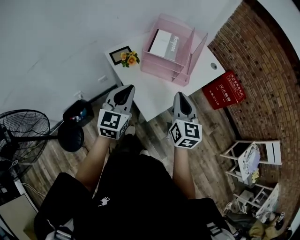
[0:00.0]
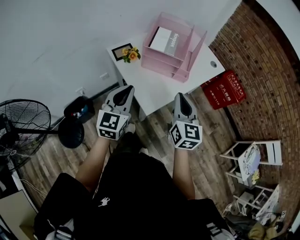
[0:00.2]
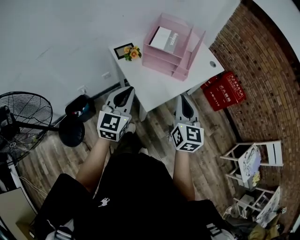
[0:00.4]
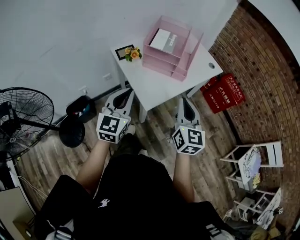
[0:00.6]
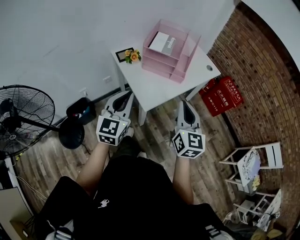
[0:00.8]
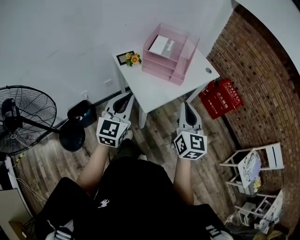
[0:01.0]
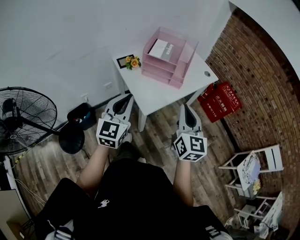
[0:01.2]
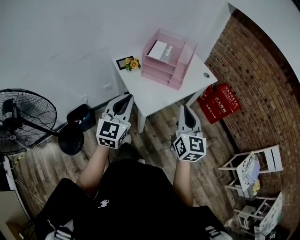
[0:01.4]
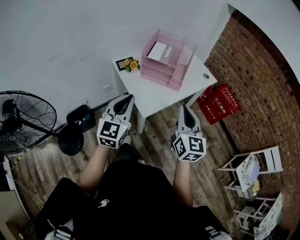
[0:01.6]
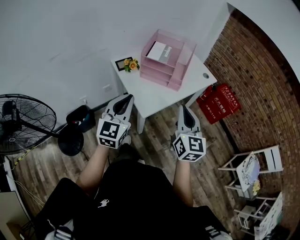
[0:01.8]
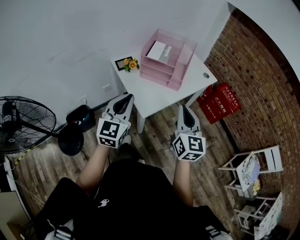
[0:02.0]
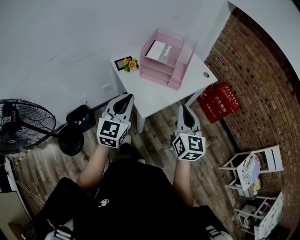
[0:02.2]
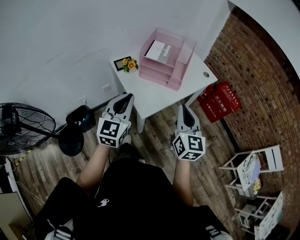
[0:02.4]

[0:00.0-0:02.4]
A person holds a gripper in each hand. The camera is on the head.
0:00.0 to 0:01.2: The left gripper is displaced backward by about 15 cm, while the right gripper goes some 15 cm backward and to the right.
0:01.2 to 0:02.4: There are only small adjustments of the grippers.

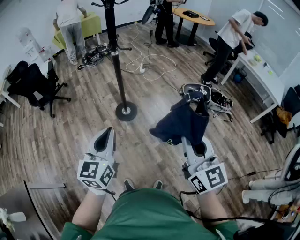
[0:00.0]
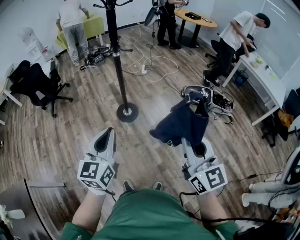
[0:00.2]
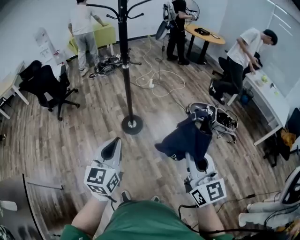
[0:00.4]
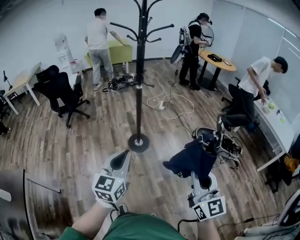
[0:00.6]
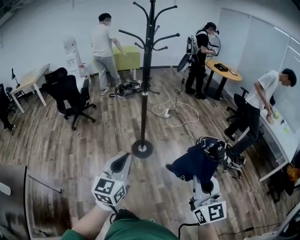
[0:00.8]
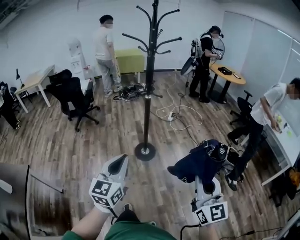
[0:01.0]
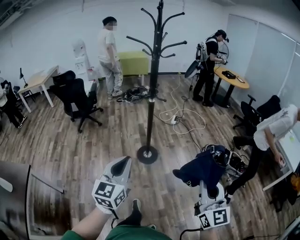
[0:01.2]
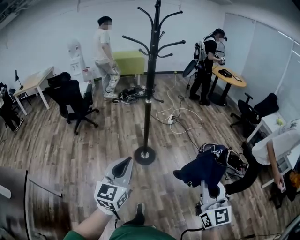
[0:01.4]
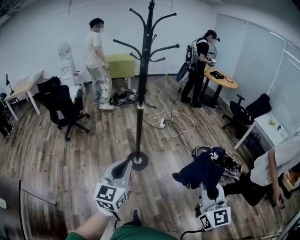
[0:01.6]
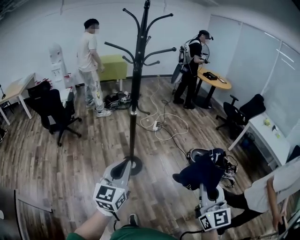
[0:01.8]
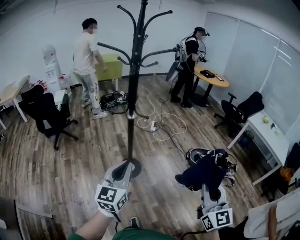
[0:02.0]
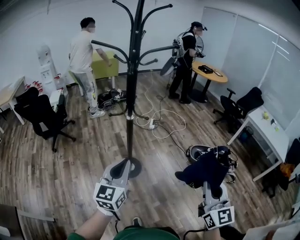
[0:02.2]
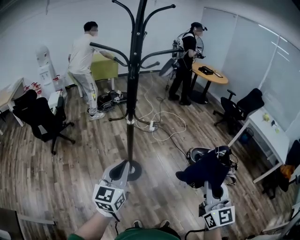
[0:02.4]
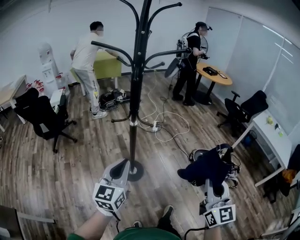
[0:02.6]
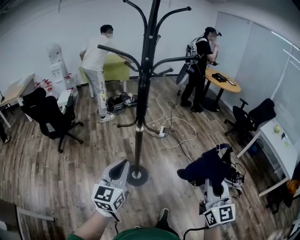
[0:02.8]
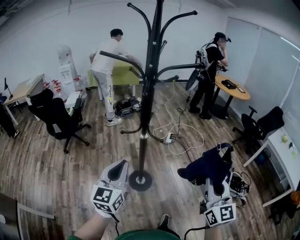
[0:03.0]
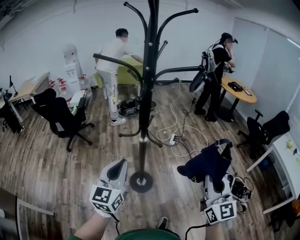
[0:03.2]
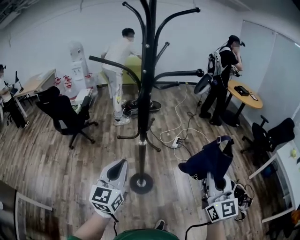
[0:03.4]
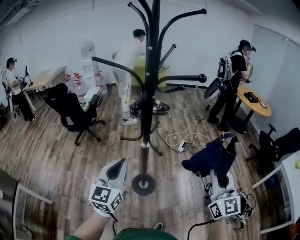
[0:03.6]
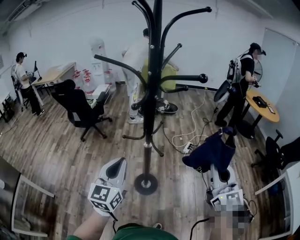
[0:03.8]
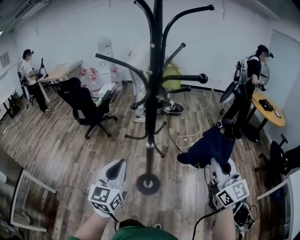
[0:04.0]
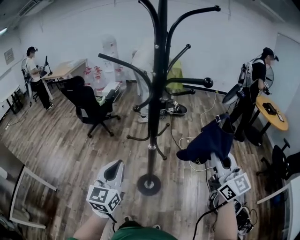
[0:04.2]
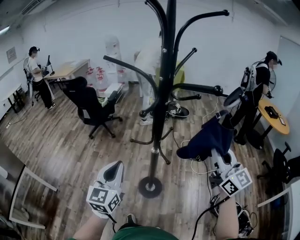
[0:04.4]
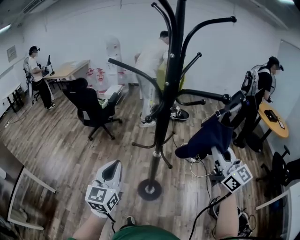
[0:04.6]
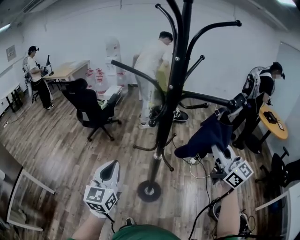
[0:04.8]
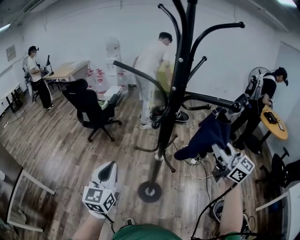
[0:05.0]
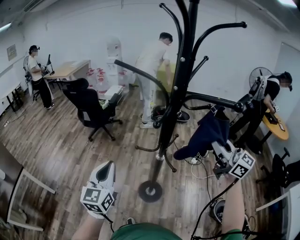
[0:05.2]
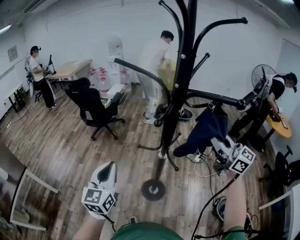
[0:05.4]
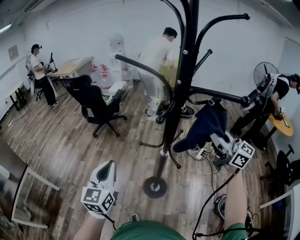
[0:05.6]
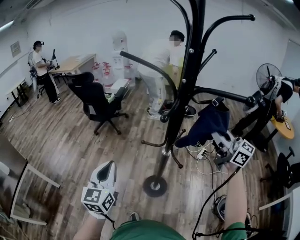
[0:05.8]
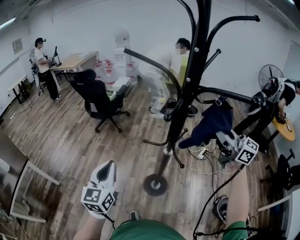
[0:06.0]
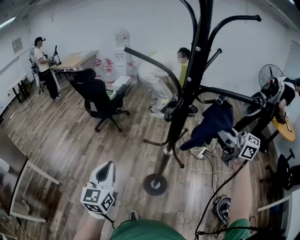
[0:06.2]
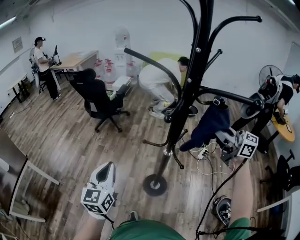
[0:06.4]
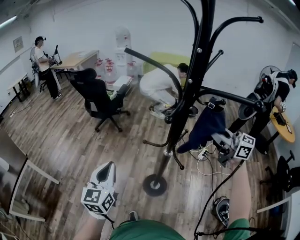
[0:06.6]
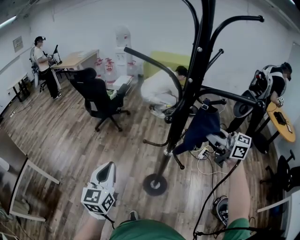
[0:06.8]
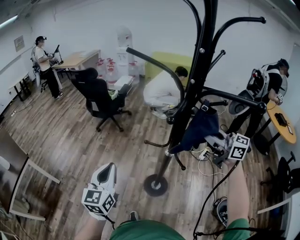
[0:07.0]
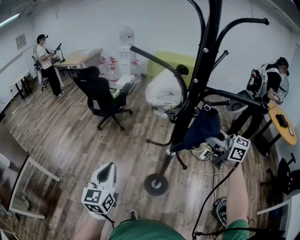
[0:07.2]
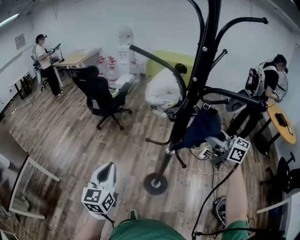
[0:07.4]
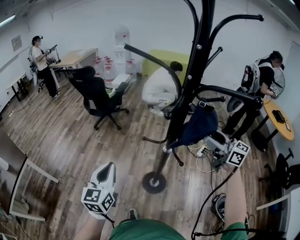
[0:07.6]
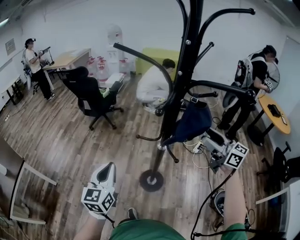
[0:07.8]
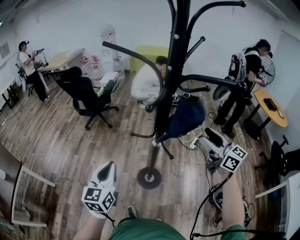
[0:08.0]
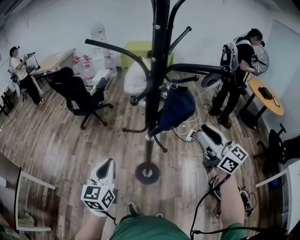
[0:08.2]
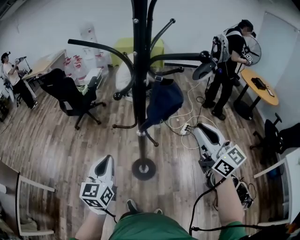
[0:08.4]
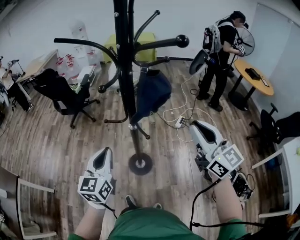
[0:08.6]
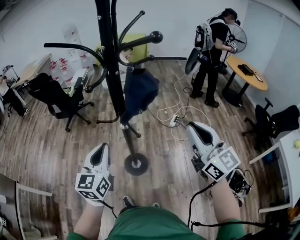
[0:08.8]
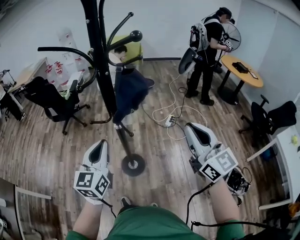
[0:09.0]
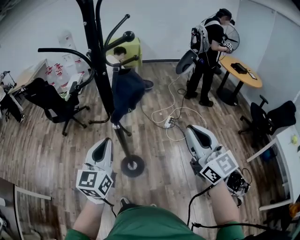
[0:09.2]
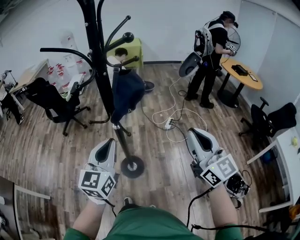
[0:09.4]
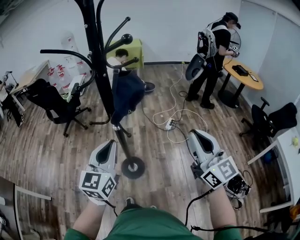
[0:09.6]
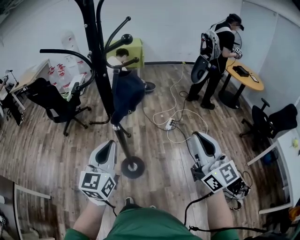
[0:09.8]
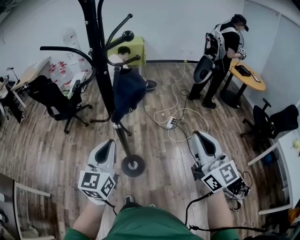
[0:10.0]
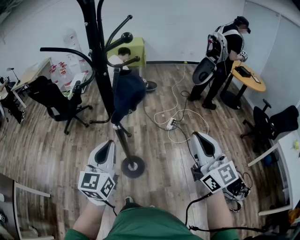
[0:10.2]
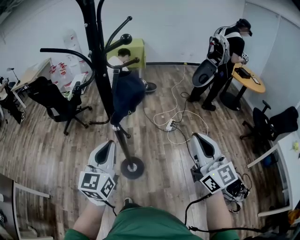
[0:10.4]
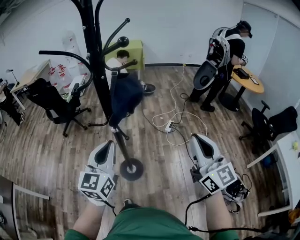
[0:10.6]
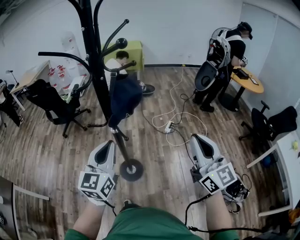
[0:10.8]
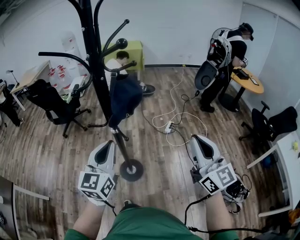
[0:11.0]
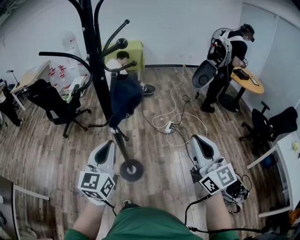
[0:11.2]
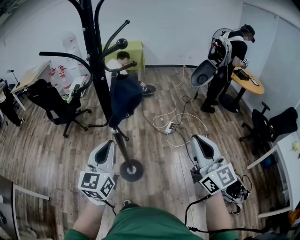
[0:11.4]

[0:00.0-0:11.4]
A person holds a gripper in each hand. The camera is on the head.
0:00.0 to 0:01.4: The right gripper heads to the right, covering approximately 5 cm; the left gripper changes place by about 5 cm.
0:01.4 to 0:02.8: The grippers both shift forward by some 30 cm.
0:02.8 to 0:04.2: The right gripper ends up roughly 35 cm from where it was, and changes its angle by about 40 degrees, while the left gripper moves roughly 10 cm, and turns by roughly 30 degrees.
0:04.2 to 0:05.6: The left gripper is displaced to the left and forward by approximately 10 cm, while the right gripper travels forward by some 15 cm, and rotates approximately 30 degrees.
0:05.6 to 0:07.2: The right gripper shifts some 5 cm forward, and opens.
0:07.2 to 0:08.6: The right gripper is displaced backward by about 20 cm, rotates about 40 degrees, and closes. Meanwhile the left gripper travels to the right by about 15 cm.
0:08.6 to 0:10.0: The left gripper travels to the right by roughly 10 cm. The right gripper heads backward and to the right, covering approximately 15 cm.
0:10.0 to 0:11.4: The grippers stay close to where they were, moving slightly.

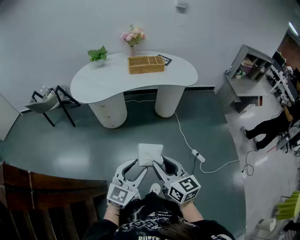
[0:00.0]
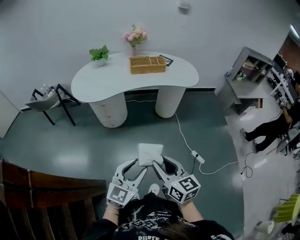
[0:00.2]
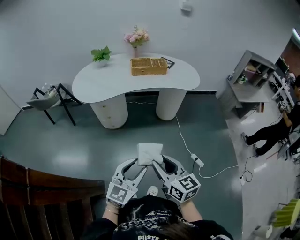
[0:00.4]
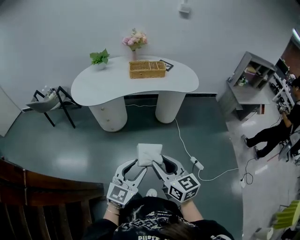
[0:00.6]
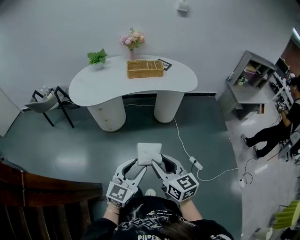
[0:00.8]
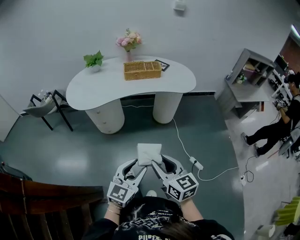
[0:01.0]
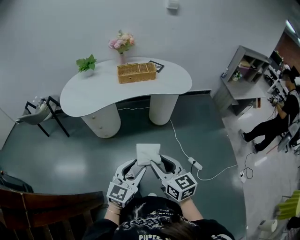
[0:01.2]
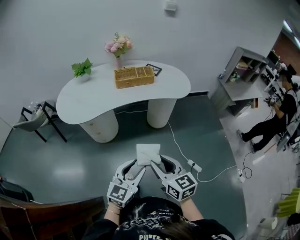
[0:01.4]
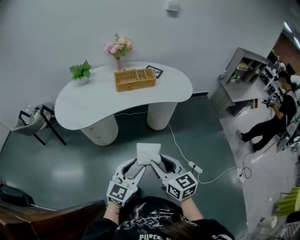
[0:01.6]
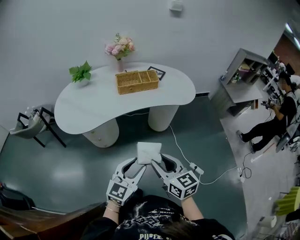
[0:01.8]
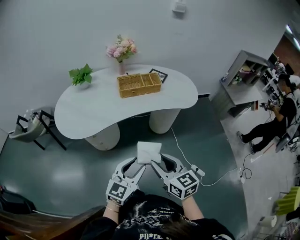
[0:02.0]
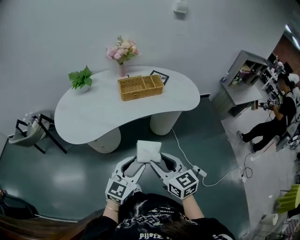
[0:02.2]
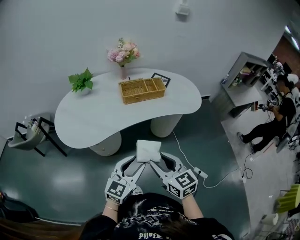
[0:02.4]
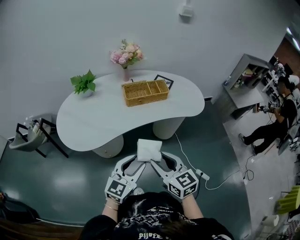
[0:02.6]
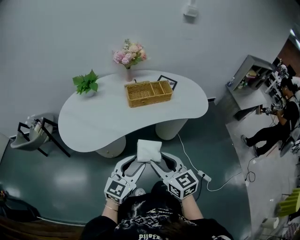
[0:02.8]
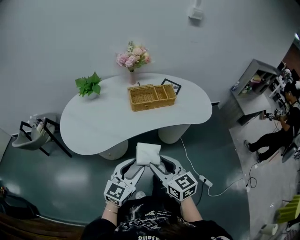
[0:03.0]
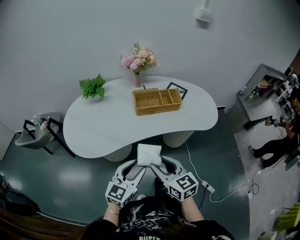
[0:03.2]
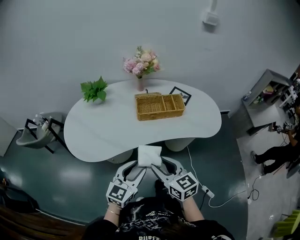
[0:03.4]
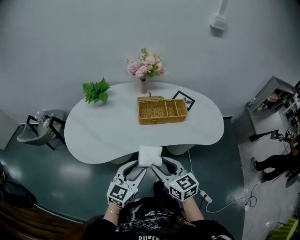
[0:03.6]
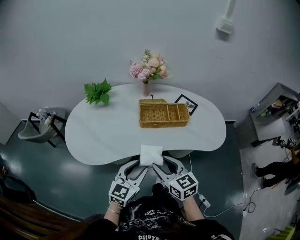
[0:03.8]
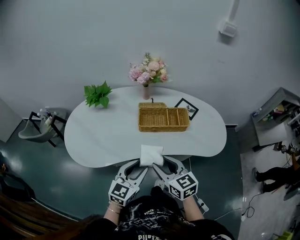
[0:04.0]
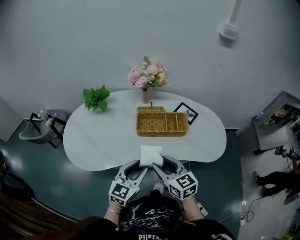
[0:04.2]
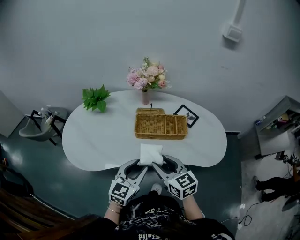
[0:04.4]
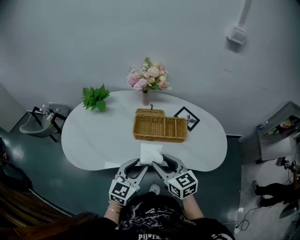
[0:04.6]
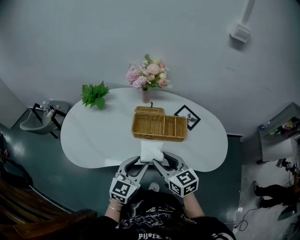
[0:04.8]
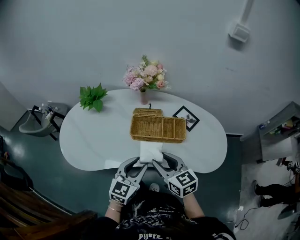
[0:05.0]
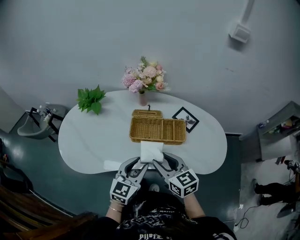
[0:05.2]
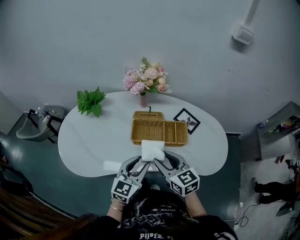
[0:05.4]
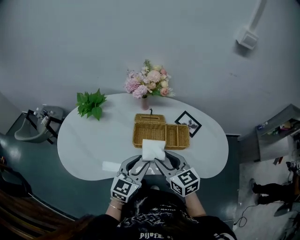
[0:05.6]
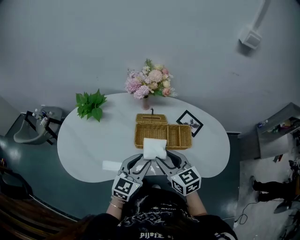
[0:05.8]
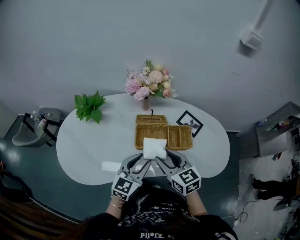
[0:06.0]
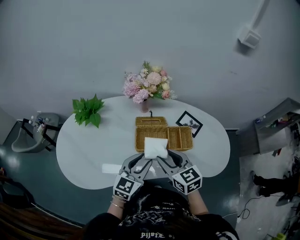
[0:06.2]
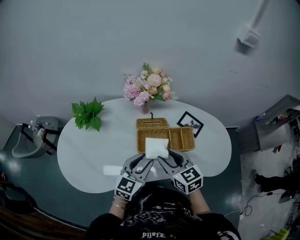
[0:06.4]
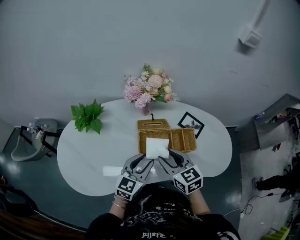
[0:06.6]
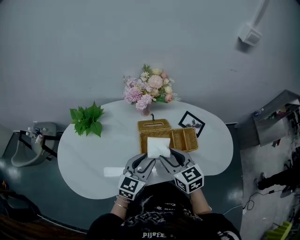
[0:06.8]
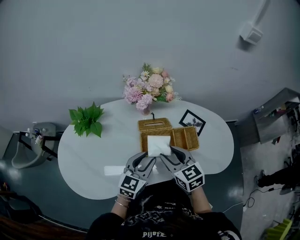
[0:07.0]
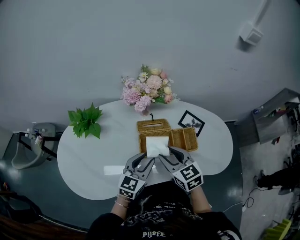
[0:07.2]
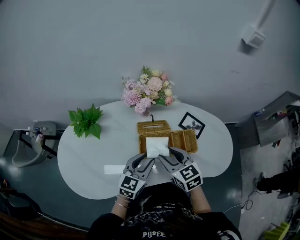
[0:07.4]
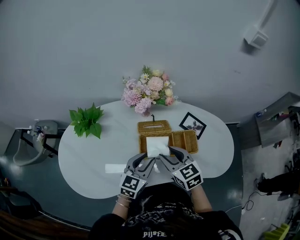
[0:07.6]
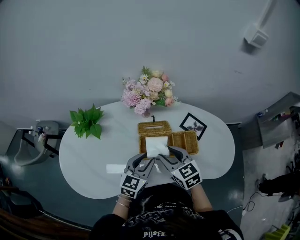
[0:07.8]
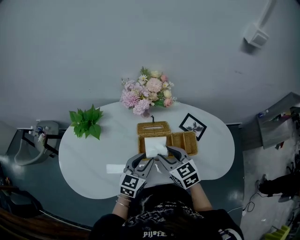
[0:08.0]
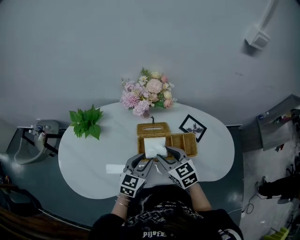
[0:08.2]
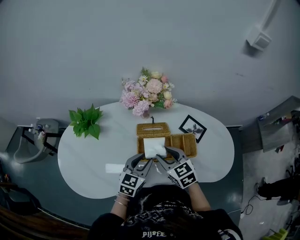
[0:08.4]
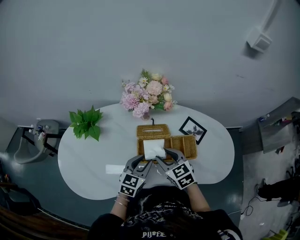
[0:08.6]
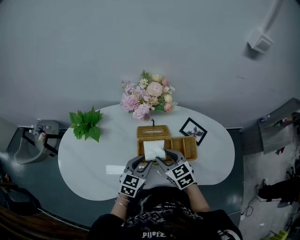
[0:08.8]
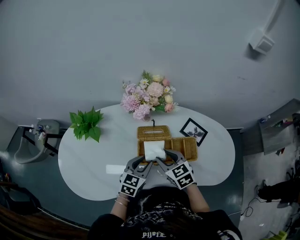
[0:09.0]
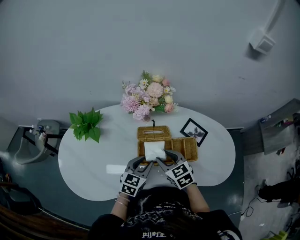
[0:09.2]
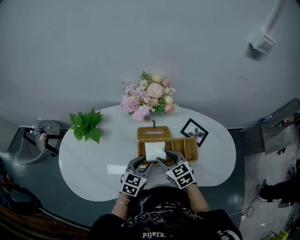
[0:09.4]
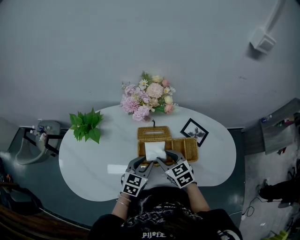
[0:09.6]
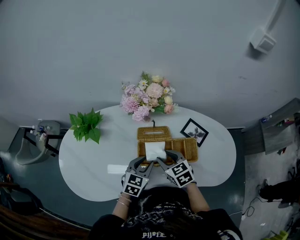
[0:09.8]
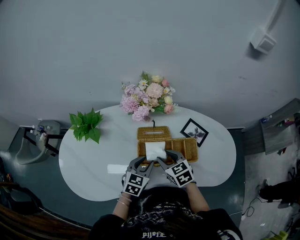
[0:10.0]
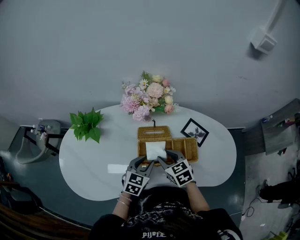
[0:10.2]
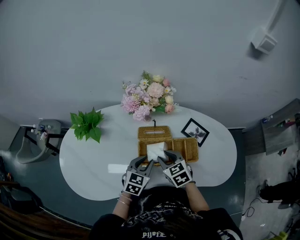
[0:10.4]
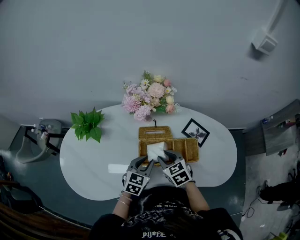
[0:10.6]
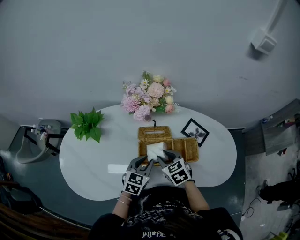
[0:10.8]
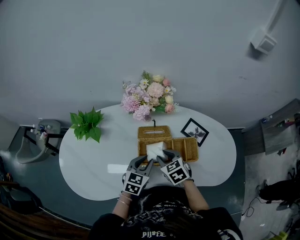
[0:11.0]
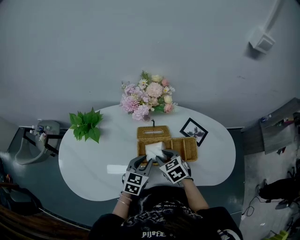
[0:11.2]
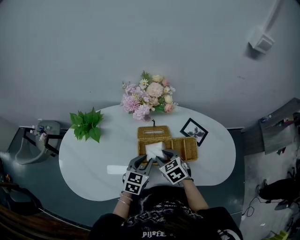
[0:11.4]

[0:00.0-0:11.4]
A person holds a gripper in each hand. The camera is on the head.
0:00.0 to 0:01.4: Both grippers travel together forward, about 15 cm.
0:01.4 to 0:02.8: Both grippers travel together forward and to the left, roughly 25 cm.
0:02.8 to 0:04.2: Both grippers move forward, approximately 20 cm.
0:04.2 to 0:05.6: The two grippers go approximately 10 cm forward.
0:05.6 to 0:07.2: Both grippers move forward, roughly 10 cm.
0:07.2 to 0:08.6: The left gripper shifts by about 5 cm, while the right gripper shifts by roughly 5 cm.
0:08.6 to 0:11.4: The grippers stay close to where they were, moving slightly.
